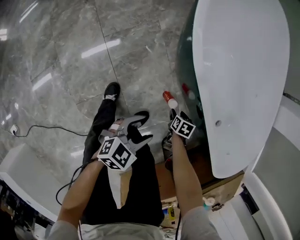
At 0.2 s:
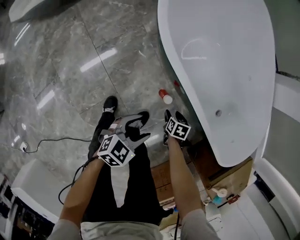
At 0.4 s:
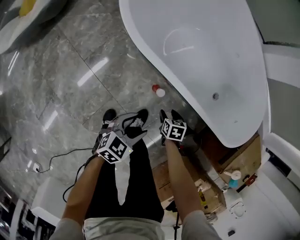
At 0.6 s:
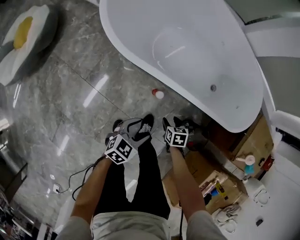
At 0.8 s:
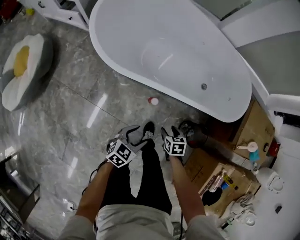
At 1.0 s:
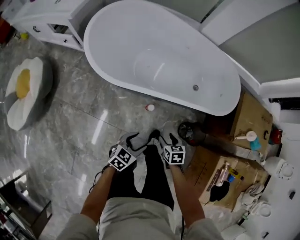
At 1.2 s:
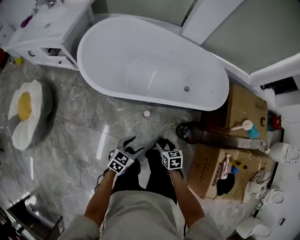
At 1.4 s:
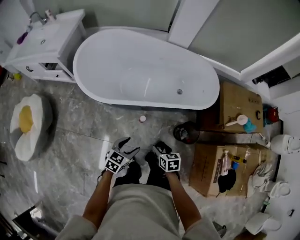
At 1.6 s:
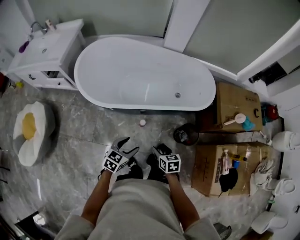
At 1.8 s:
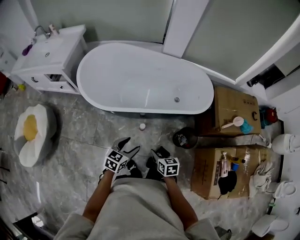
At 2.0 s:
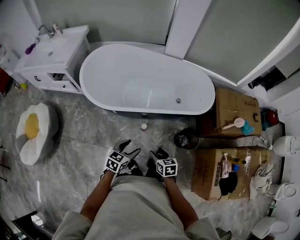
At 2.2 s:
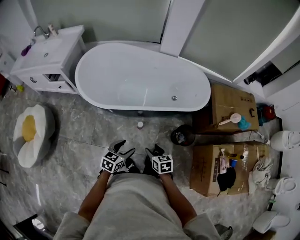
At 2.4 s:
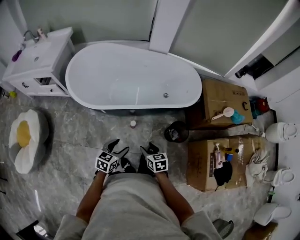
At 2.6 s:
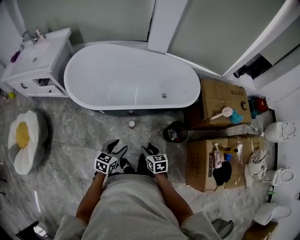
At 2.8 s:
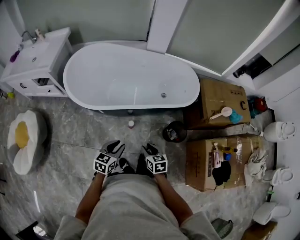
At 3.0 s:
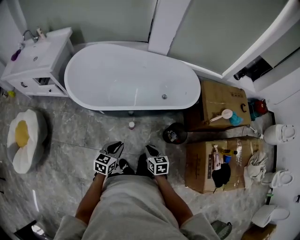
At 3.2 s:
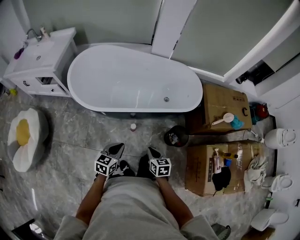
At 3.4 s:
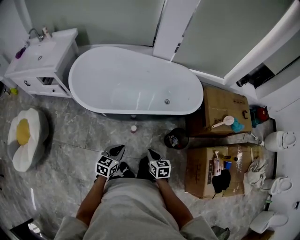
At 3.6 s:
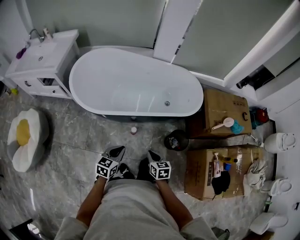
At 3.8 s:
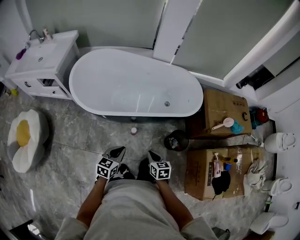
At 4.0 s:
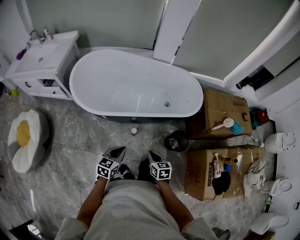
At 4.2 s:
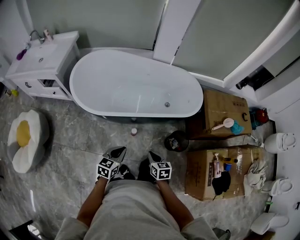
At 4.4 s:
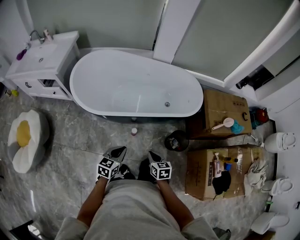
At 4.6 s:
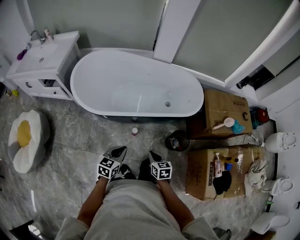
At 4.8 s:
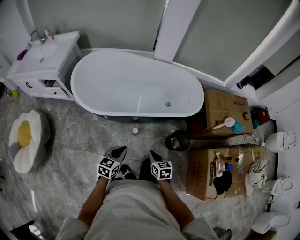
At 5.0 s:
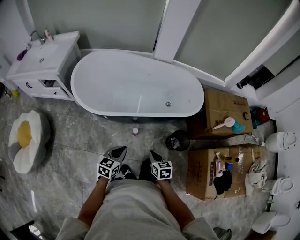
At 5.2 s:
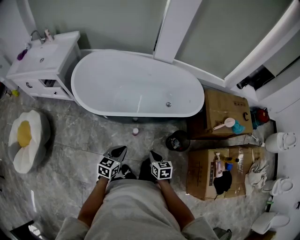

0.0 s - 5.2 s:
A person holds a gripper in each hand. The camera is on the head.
0.0 s - 1.8 s: The left gripper is displaced upward by some 30 cm, and changes its angle by some 30 degrees, while the right gripper travels upward by about 50 cm, and angles its fingers upward, by approximately 40 degrees.
1.8 s - 3.4 s: The left gripper closes. Meanwhile the right gripper closes up.
3.4 s - 5.2 s: Neither gripper changes place.

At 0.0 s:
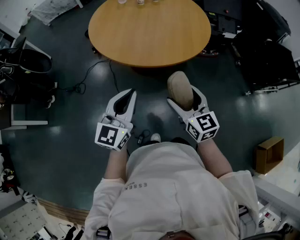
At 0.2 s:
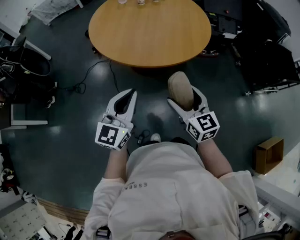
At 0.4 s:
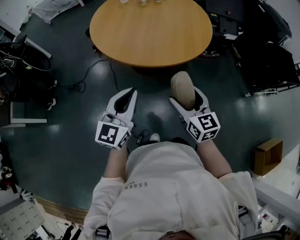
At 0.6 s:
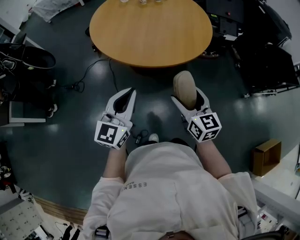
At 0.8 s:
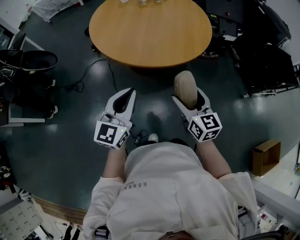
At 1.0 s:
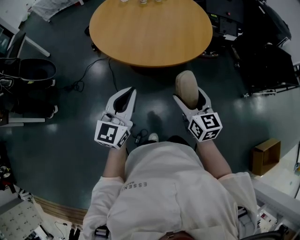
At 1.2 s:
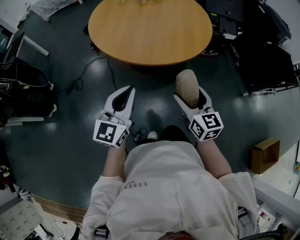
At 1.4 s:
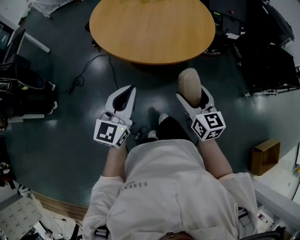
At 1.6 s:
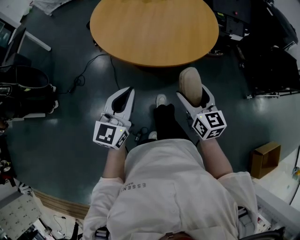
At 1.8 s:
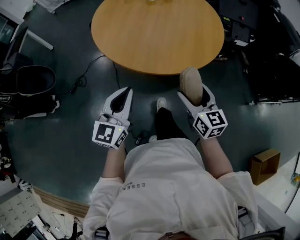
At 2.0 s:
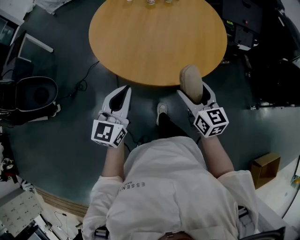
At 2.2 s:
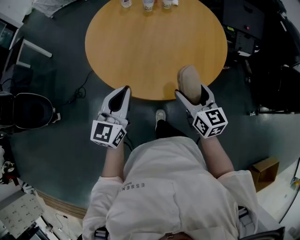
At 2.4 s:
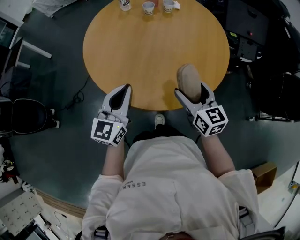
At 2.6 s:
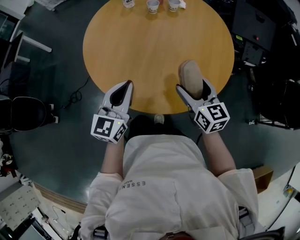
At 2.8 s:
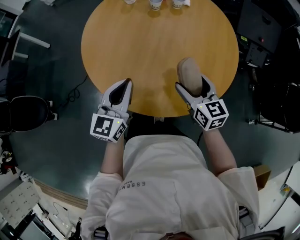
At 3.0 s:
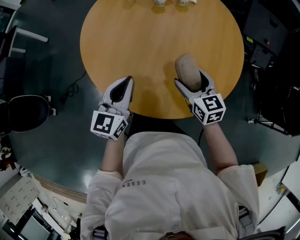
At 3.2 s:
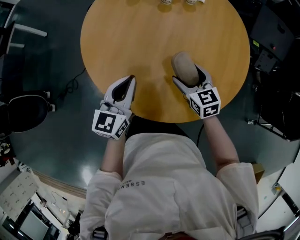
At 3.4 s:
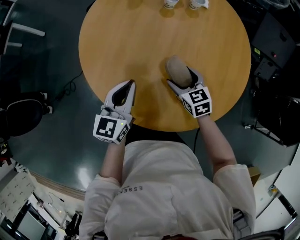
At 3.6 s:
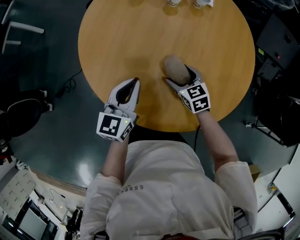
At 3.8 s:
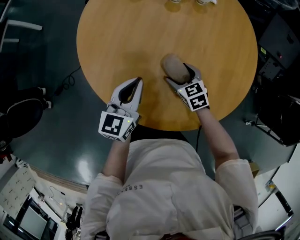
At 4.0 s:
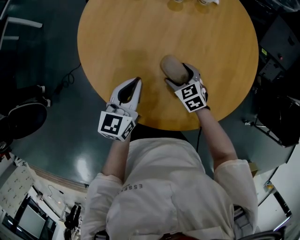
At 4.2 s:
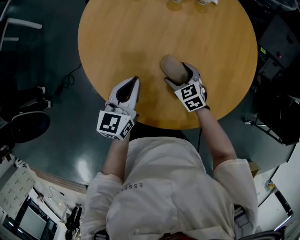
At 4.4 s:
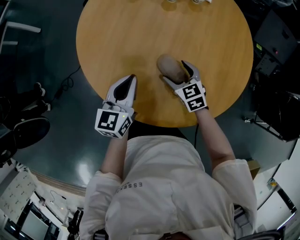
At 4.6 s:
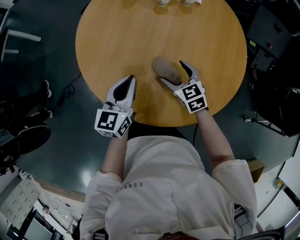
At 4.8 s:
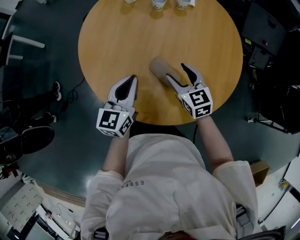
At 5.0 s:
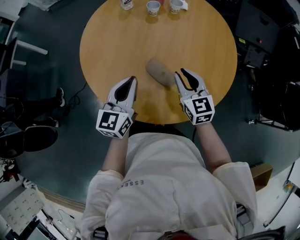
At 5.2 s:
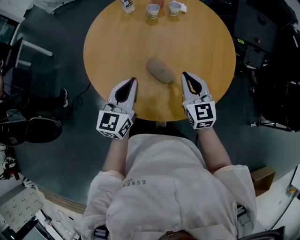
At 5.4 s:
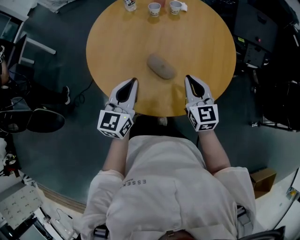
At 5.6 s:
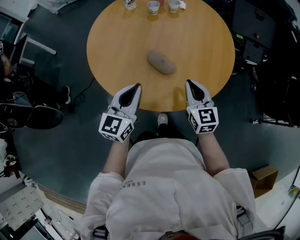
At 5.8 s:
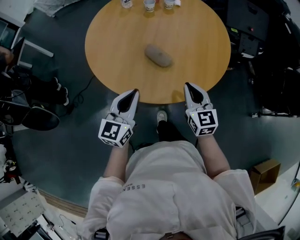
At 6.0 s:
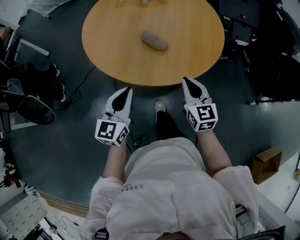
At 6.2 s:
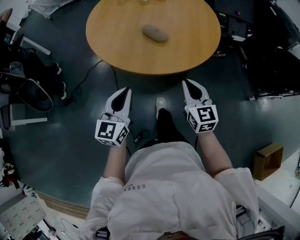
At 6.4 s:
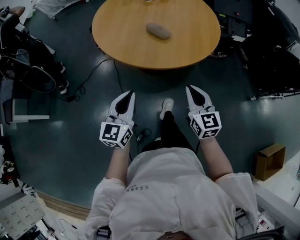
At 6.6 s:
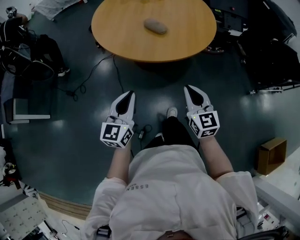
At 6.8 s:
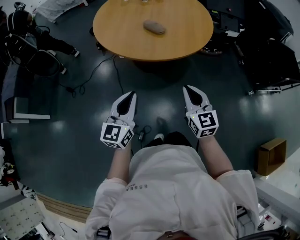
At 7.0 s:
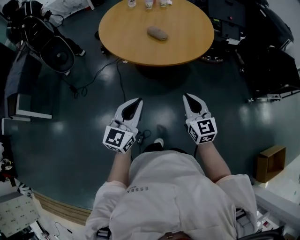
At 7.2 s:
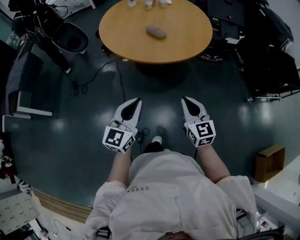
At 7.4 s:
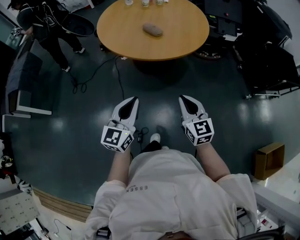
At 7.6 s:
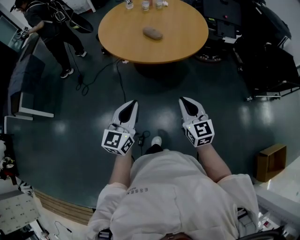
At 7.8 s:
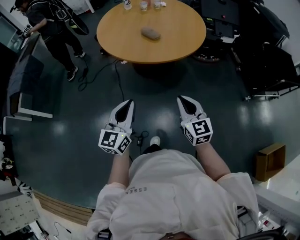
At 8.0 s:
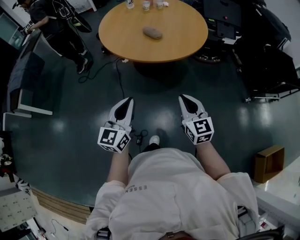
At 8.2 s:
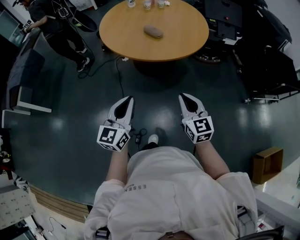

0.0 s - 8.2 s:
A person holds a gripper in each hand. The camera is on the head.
0.0 s - 1.6 s: The right gripper shifts by approximately 5 cm.
1.6 s - 3.2 s: The grippers both shift forward by approximately 40 cm. The right gripper rotates some 30 degrees.
3.2 s - 5.0 s: The right gripper heads upward, covering some 10 cm, and closes its fingers.
5.0 s - 6.6 s: The two grippers travel together, backward, roughly 40 cm.
6.6 s - 8.2 s: The right gripper shifts about 10 cm backward. The left gripper is displaced backward, to the right and upward by approximately 15 cm.

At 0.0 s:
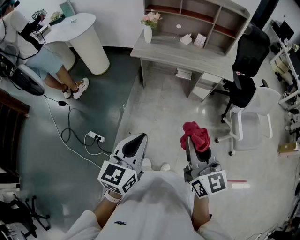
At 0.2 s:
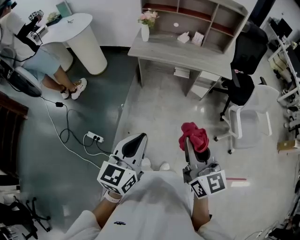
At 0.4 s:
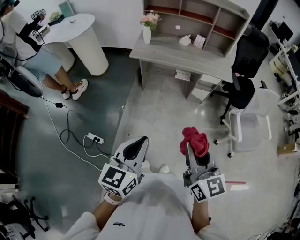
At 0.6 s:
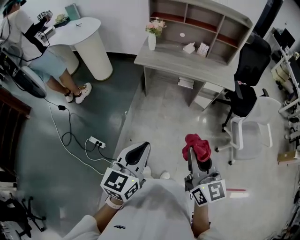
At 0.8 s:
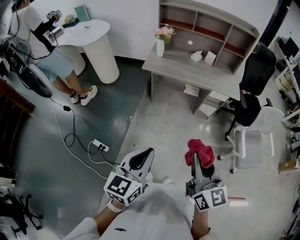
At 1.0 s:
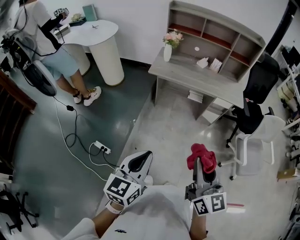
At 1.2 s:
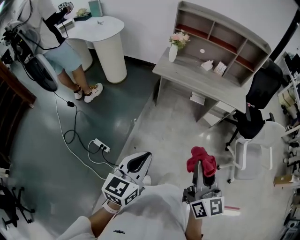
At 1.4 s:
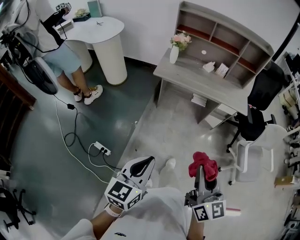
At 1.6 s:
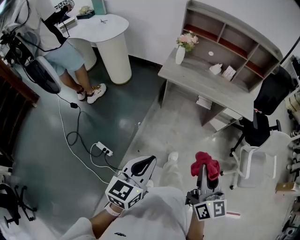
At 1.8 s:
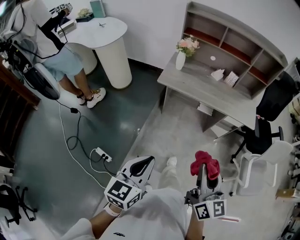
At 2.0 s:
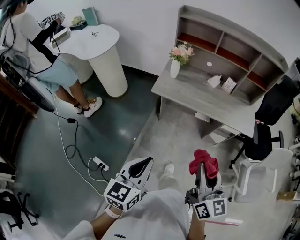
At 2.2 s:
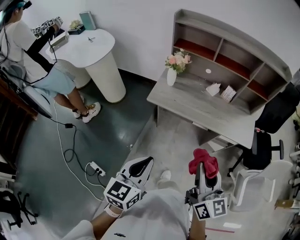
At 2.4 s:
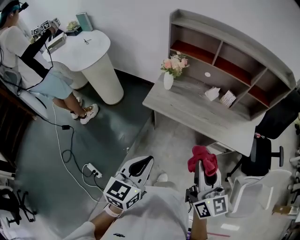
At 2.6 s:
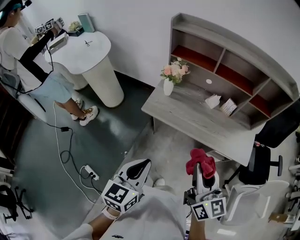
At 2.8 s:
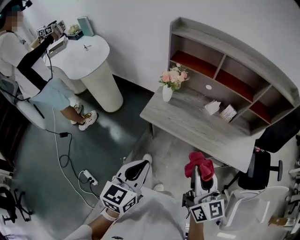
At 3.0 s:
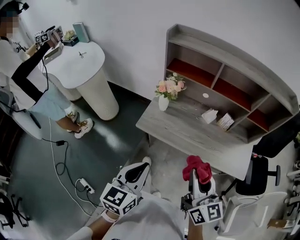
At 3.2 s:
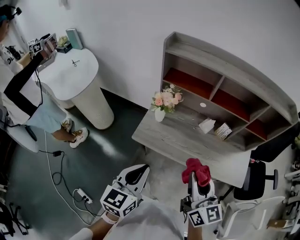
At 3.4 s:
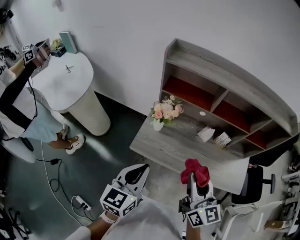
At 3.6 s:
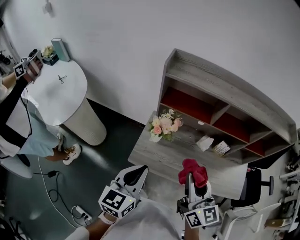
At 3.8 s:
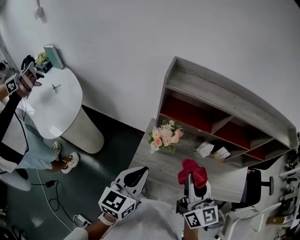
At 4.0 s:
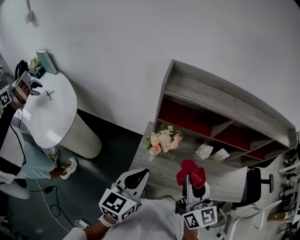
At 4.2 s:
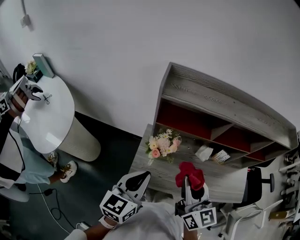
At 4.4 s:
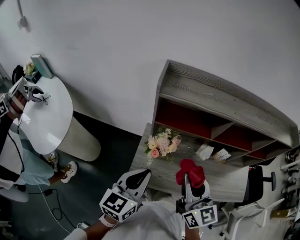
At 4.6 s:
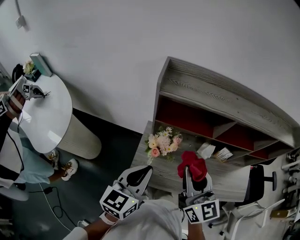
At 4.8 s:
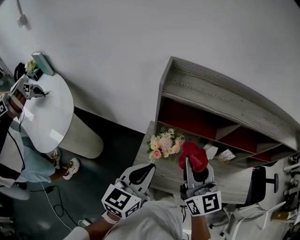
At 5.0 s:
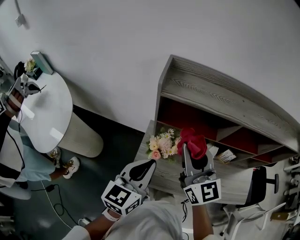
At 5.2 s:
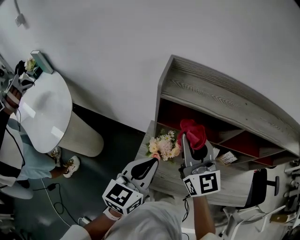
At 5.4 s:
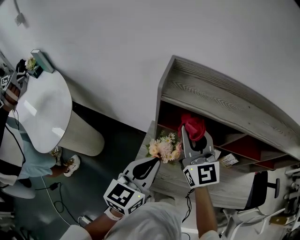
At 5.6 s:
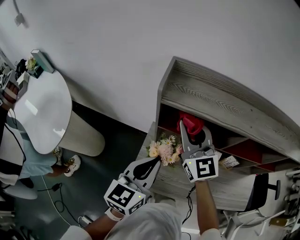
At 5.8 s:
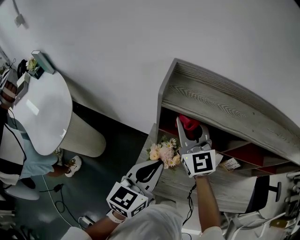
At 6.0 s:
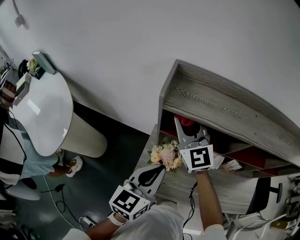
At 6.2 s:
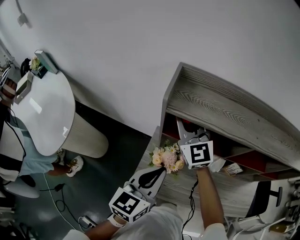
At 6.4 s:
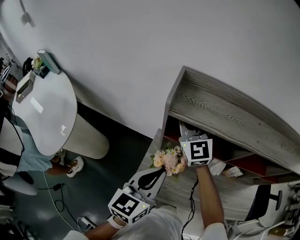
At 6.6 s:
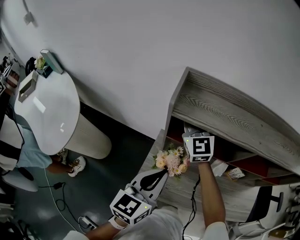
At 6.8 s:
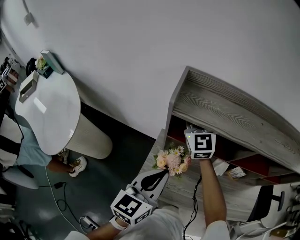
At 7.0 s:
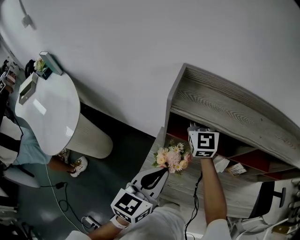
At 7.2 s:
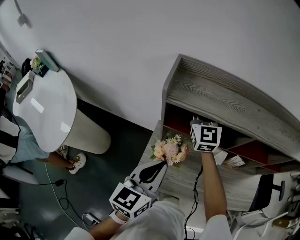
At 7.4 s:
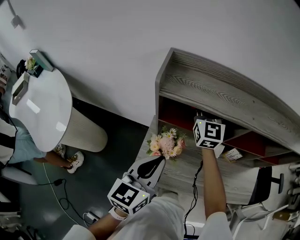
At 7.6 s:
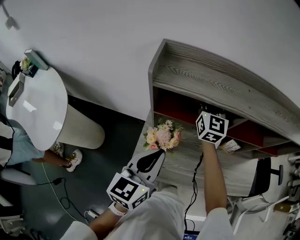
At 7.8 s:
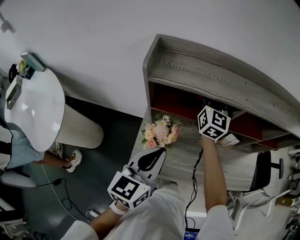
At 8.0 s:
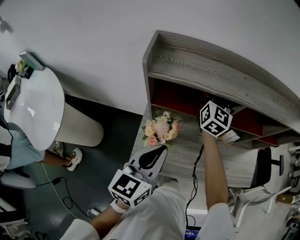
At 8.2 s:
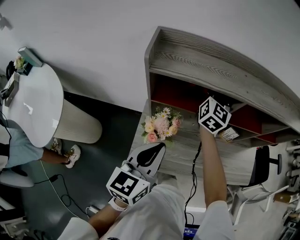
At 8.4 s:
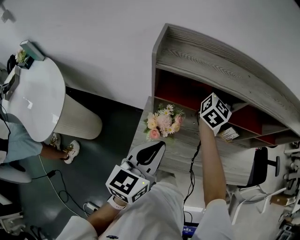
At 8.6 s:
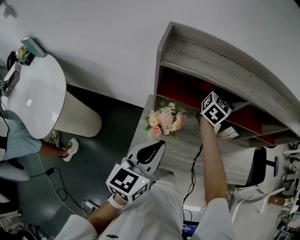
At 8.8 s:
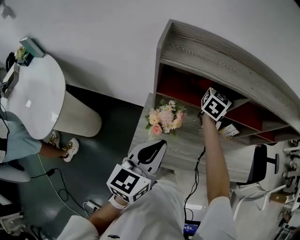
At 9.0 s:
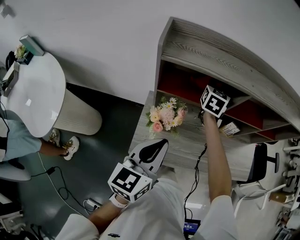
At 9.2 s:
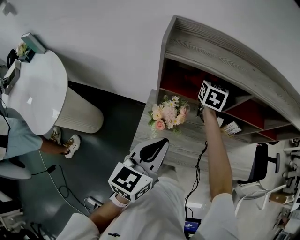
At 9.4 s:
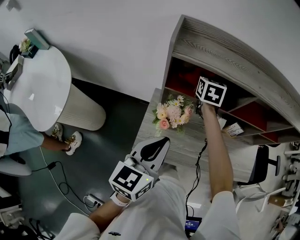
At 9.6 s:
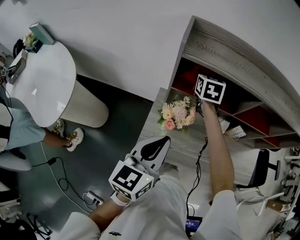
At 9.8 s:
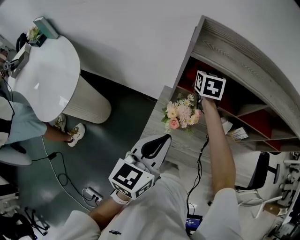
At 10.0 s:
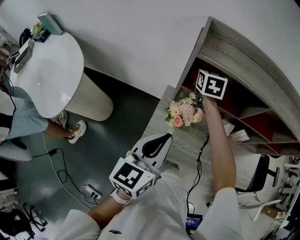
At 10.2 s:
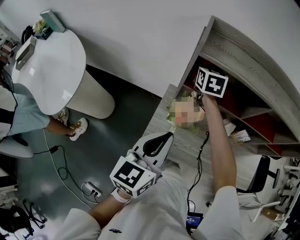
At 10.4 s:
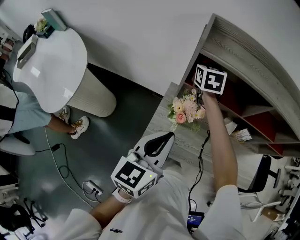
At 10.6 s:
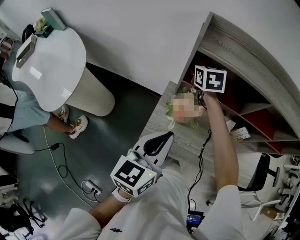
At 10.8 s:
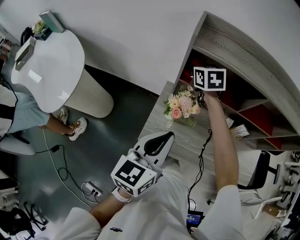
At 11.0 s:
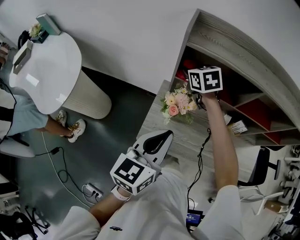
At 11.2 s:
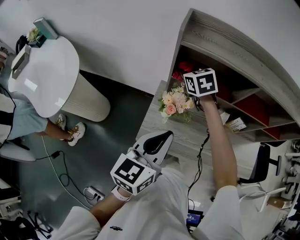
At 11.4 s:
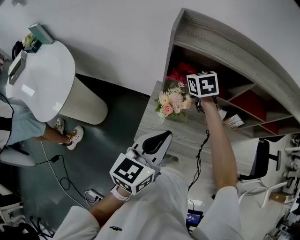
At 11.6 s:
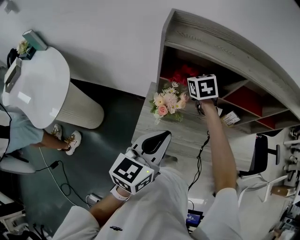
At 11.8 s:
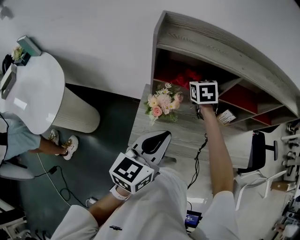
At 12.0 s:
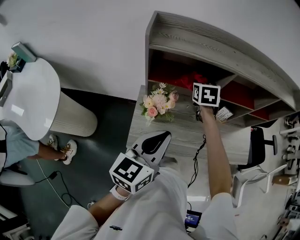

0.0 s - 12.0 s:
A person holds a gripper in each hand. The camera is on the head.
0.0 s - 1.6 s: The left gripper shifts roughly 10 cm to the left and forward; the right gripper goes some 10 cm forward and to the left.
1.6 s - 3.0 s: Both grippers are carried forward, some 40 cm.
3.0 s - 4.4 s: The right gripper moves forward and to the left, some 35 cm. Meanwhile the left gripper is displaced forward by about 35 cm.
4.4 s - 6.0 s: The right gripper heads forward, covering about 25 cm, and rotates about 30 degrees. Meanwhile the left gripper is displaced forward by about 10 cm.
6.0 s - 7.6 s: The right gripper travels to the right and forward by approximately 15 cm, and rotates approximately 30 degrees.
7.6 s - 9.0 s: The right gripper travels downward and to the right by roughly 10 cm, and turns by about 30 degrees.
9.0 s - 10.4 s: The right gripper heads to the left, covering roughly 20 cm, and turns by roughly 30 degrees. Meanwhile the left gripper shifts by some 5 cm.
10.4 s - 12.0 s: The left gripper changes place by some 10 cm. The right gripper shifts by approximately 20 cm.
